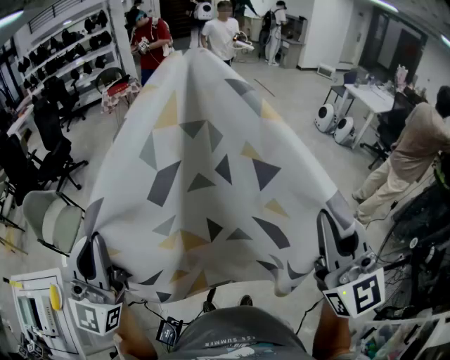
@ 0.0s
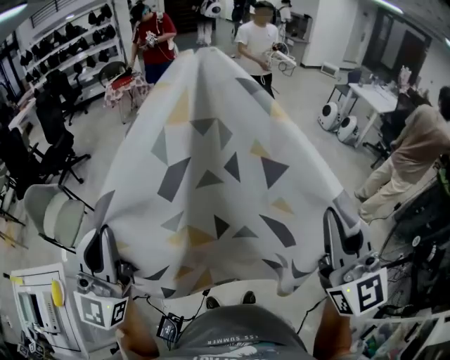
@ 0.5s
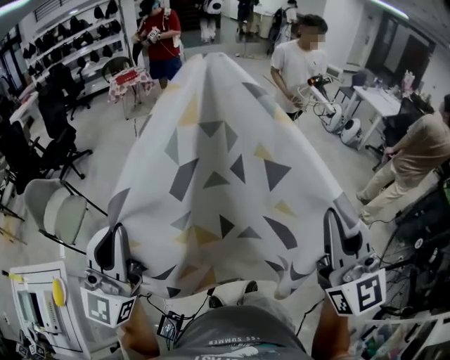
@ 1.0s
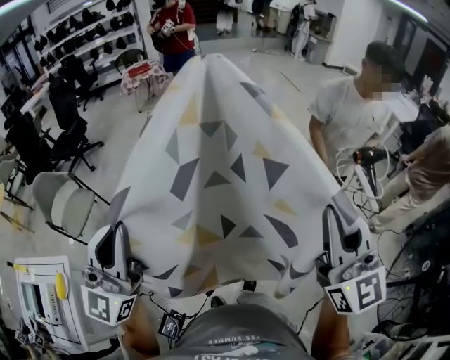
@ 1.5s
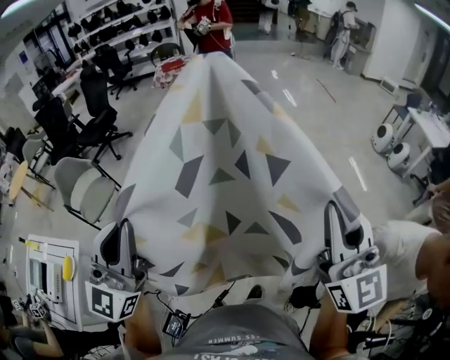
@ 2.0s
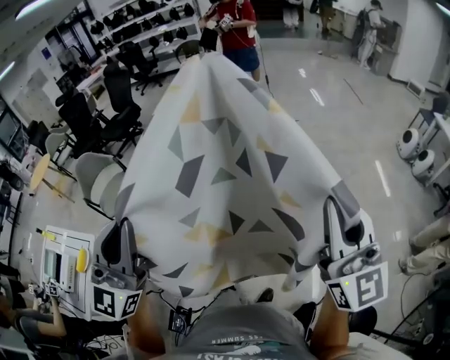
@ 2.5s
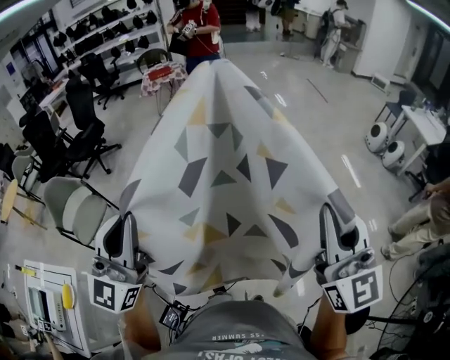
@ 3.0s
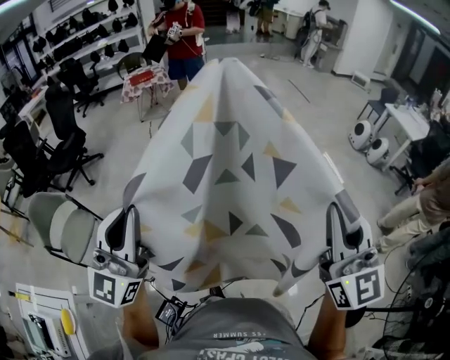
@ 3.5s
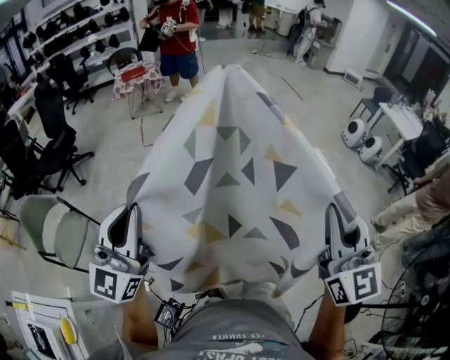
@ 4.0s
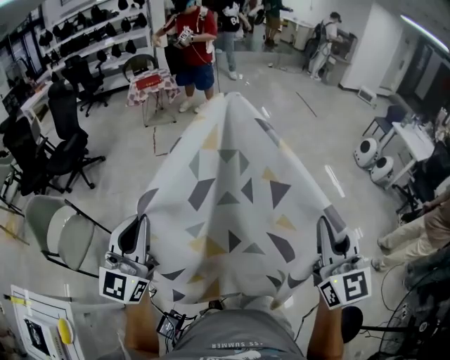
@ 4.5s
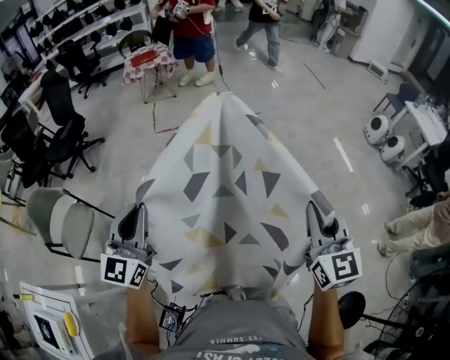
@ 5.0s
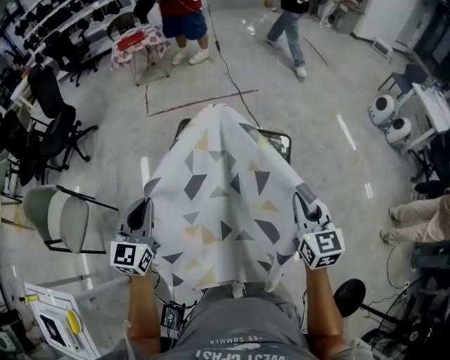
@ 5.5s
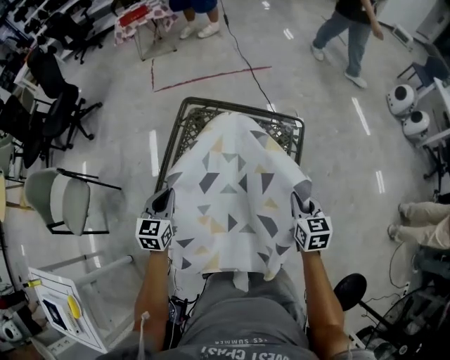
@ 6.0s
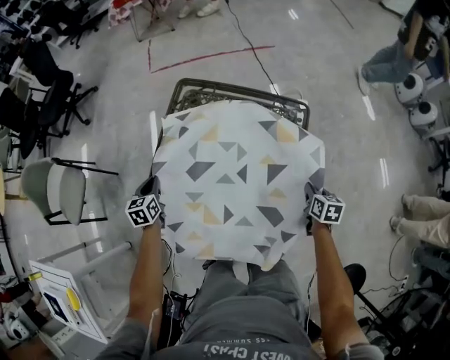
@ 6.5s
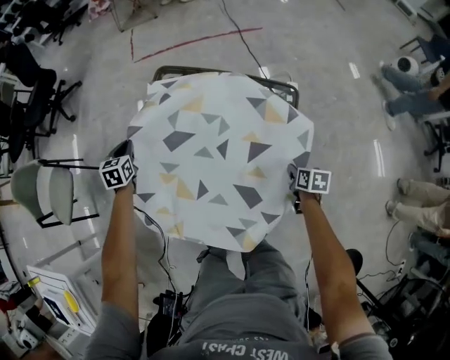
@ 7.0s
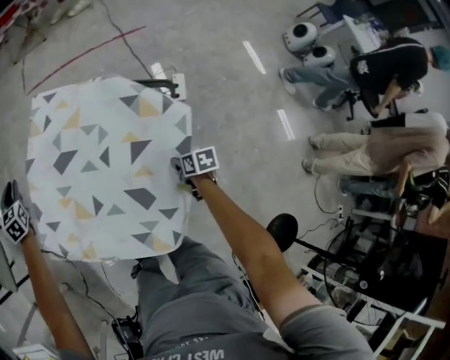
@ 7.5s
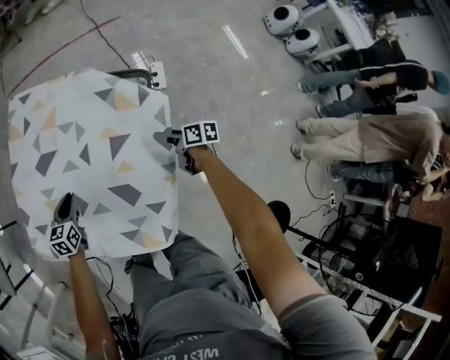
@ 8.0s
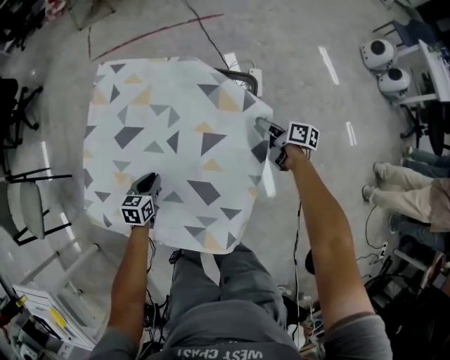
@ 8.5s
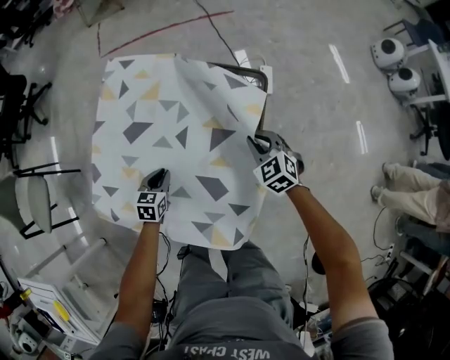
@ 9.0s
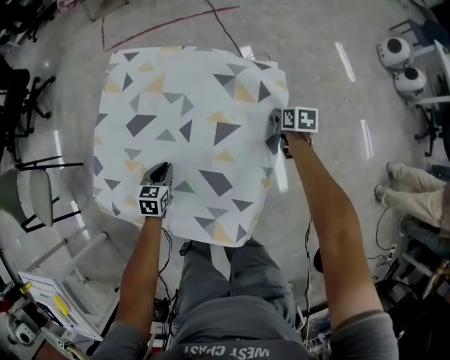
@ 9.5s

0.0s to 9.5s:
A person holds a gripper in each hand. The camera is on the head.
0.0s to 2.0s: The right gripper travels forward by about 20 cm. Meanwhile the left gripper travels forward by some 10 cm.
2.0s to 4.0s: The left gripper goes about 30 cm forward and to the left. The right gripper shifts approximately 20 cm forward and to the left.
4.0s to 5.5s: The two grippers go some 30 cm downward and forward. The right gripper turns by approximately 30 degrees; the left gripper tilts its fingers approximately 30 degrees downward.
5.5s to 7.5s: The grippers both shift downward by some 35 cm. The right gripper tilts its fingers about 40 degrees downward. The left gripper turns by roughly 30 degrees.
7.5s to 9.5s: The left gripper shifts roughly 35 cm to the right, backward and downward, and swivels about 30 degrees; the right gripper goes forward and backward, some 15 cm each way, reversing 2 times, and opens, then closes again.

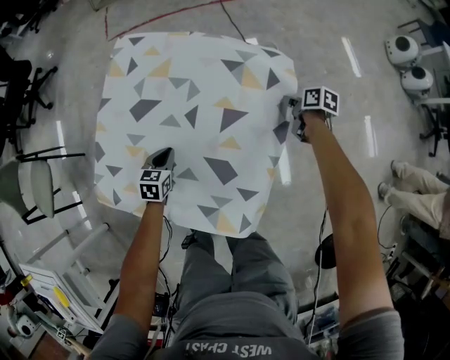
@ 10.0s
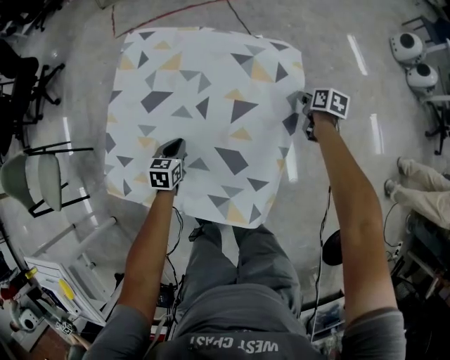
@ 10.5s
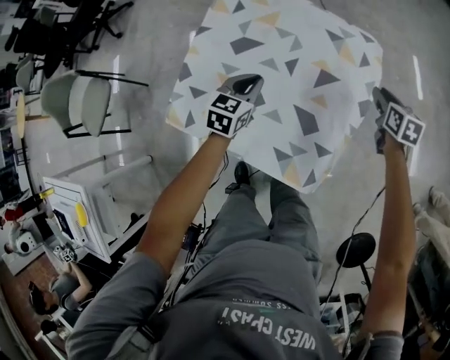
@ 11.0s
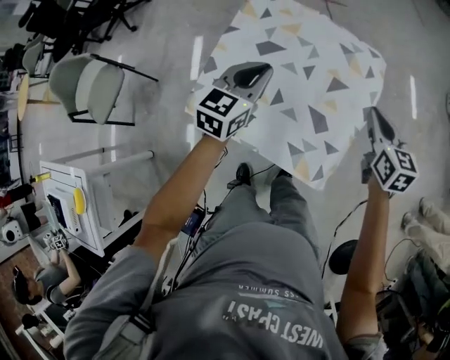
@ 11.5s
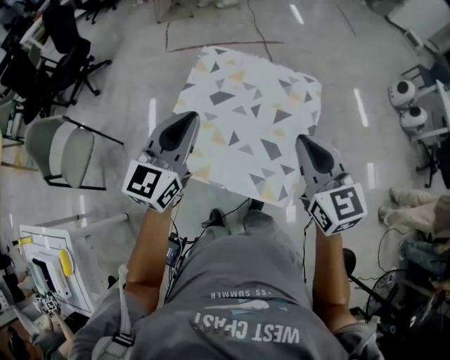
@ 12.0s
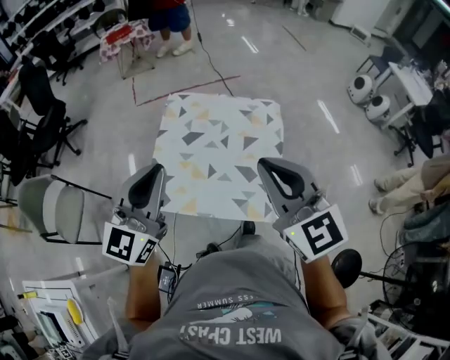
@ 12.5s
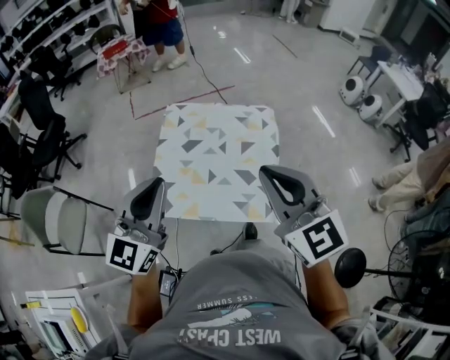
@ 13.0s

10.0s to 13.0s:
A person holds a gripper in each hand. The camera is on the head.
10.0s to 11.5s: The left gripper goes roughly 35 cm upward, and tilts its fingers roughly 30 degrees upward; the right gripper moves upward, backward and to the left, some 40 cm, and rolls counterclockwise, seen from behind, by roughly 40 degrees.
11.5s to 13.0s: The right gripper travels upward, backward and to the left by about 40 cm, and changes its angle by approximately 30 degrees, while the left gripper is displaced upward and backward by about 35 cm, and swivels some 30 degrees.

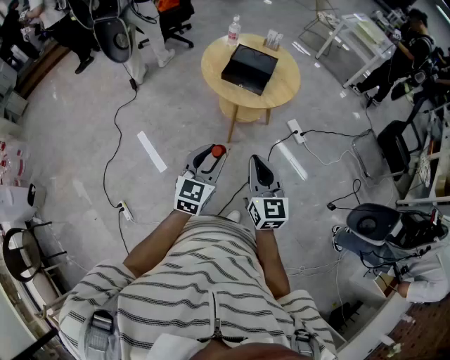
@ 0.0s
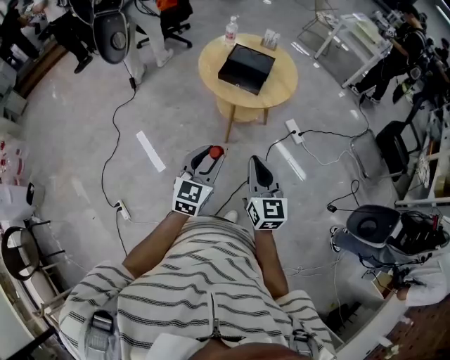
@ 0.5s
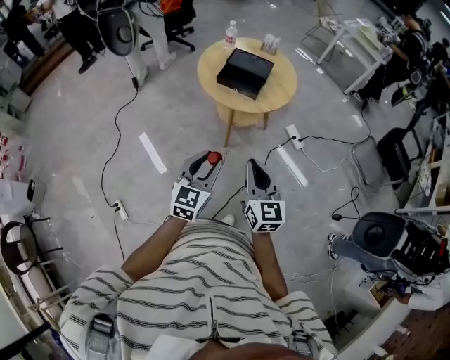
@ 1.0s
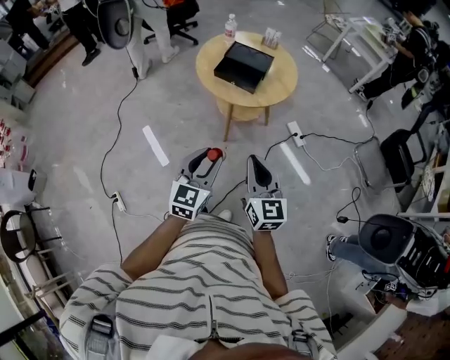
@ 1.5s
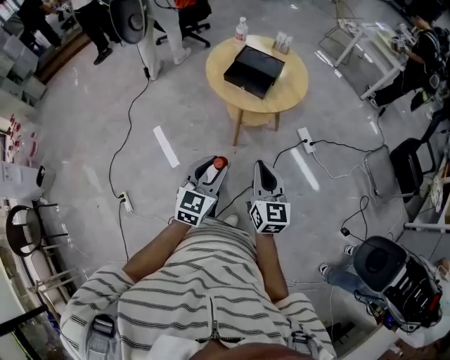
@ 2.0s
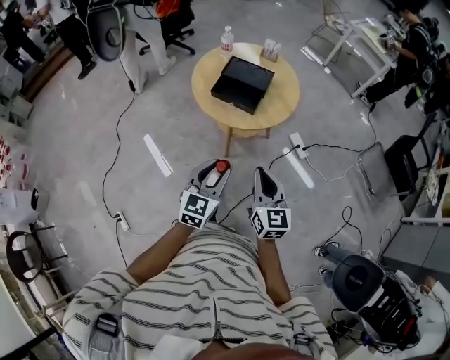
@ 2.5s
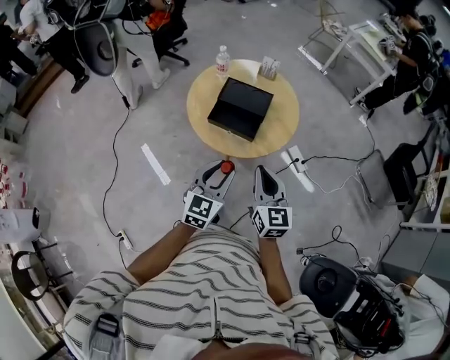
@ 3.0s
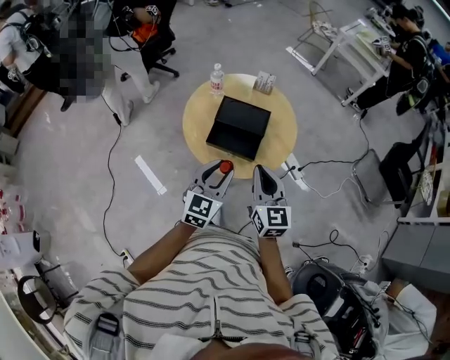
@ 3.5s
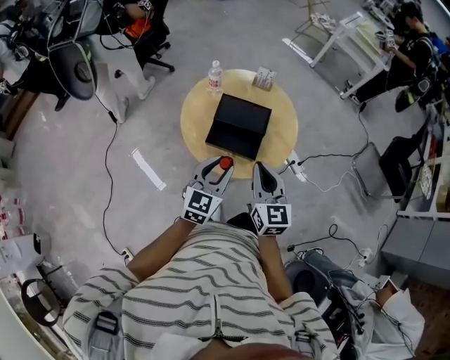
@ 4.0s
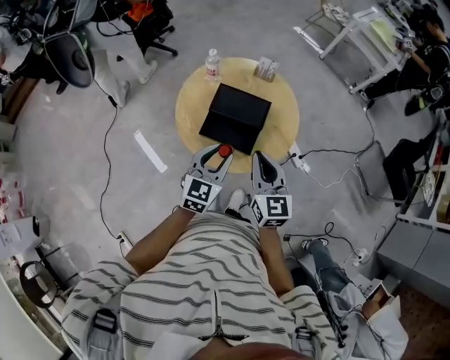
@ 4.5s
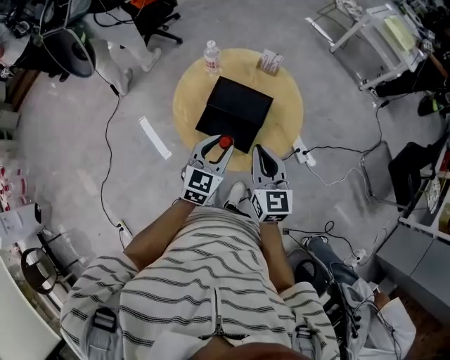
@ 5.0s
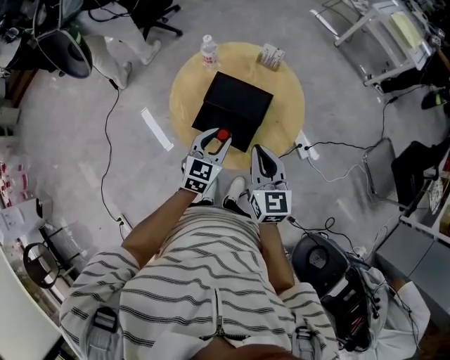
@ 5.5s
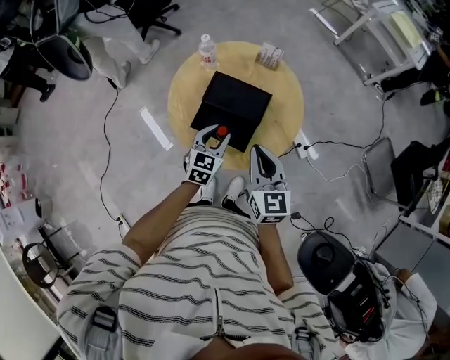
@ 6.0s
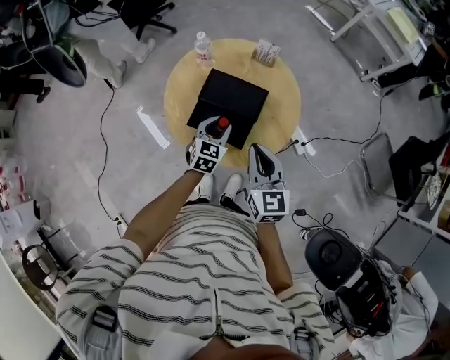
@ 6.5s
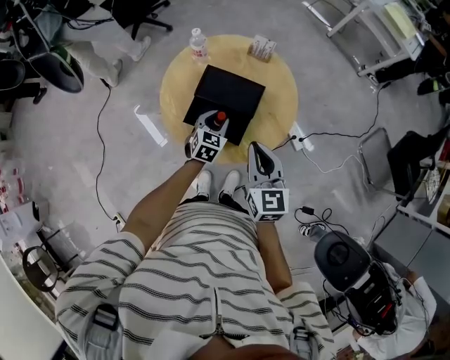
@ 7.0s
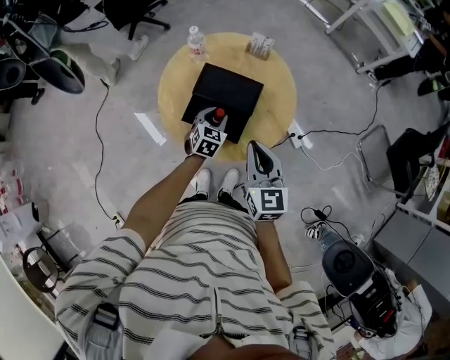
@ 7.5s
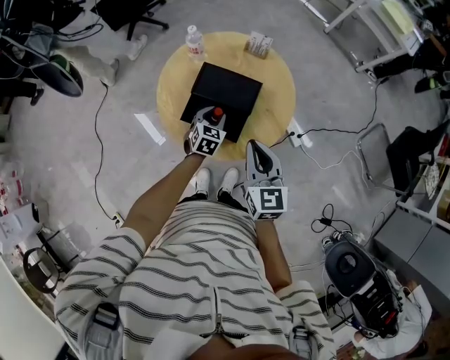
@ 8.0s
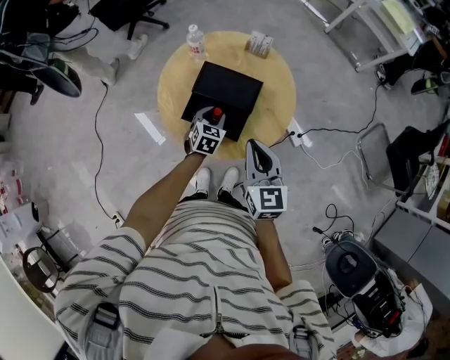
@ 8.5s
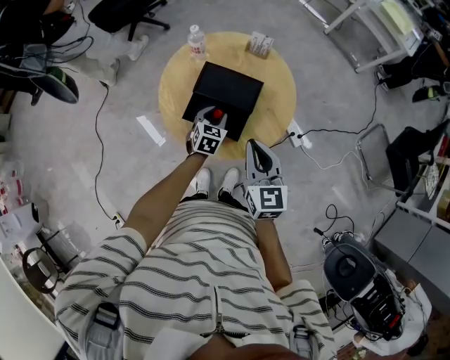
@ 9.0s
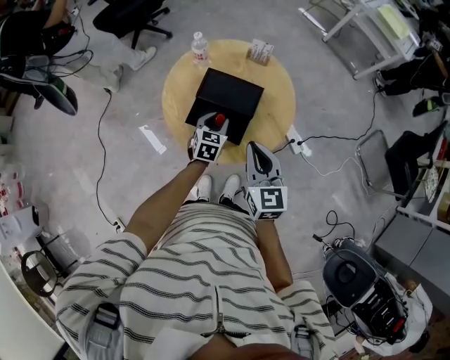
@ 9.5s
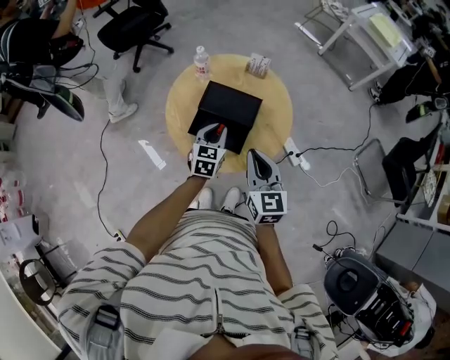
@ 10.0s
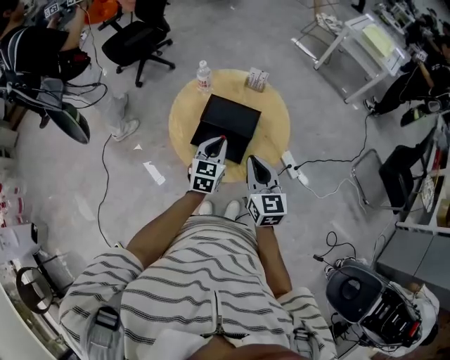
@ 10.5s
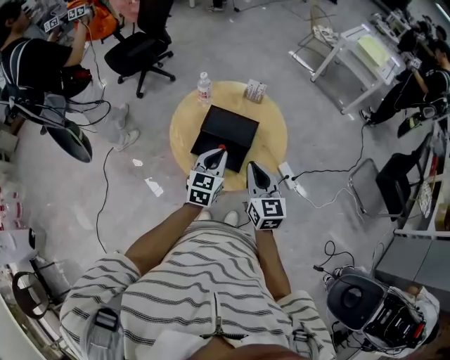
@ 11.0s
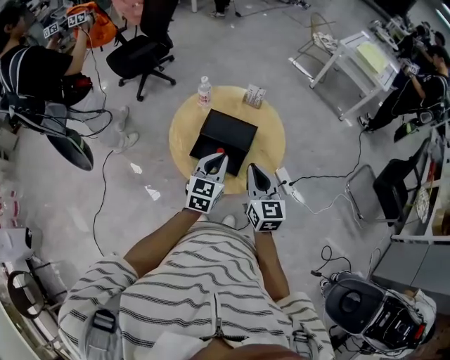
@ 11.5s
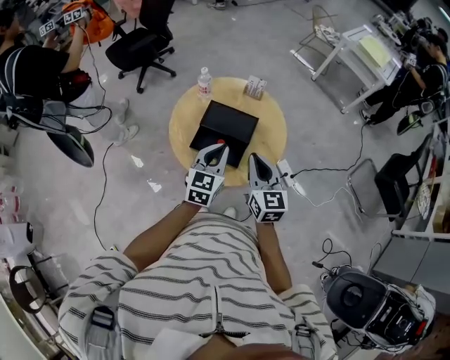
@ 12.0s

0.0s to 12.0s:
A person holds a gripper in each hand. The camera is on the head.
0.0s to 2.0s: Both grippers travel together to the right, about 5 cm.
2.0s to 4.0s: Both grippers travel together forward, about 35 cm.
4.0s to 6.0s: The left gripper shifts approximately 20 cm downward and forward, while the right gripper travels forward and to the right by approximately 10 cm.
6.0s to 8.0s: The left gripper goes some 10 cm downward.
8.0s to 10.0s: The left gripper moves upward, roughly 10 cm.
10.0s to 12.0s: The left gripper goes about 15 cm upward and backward.

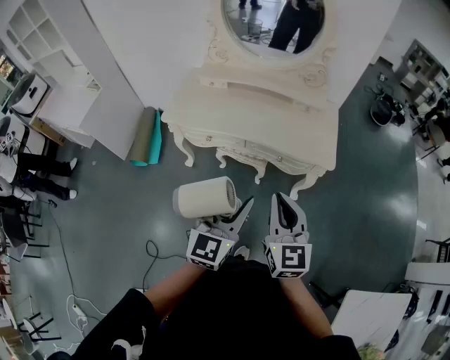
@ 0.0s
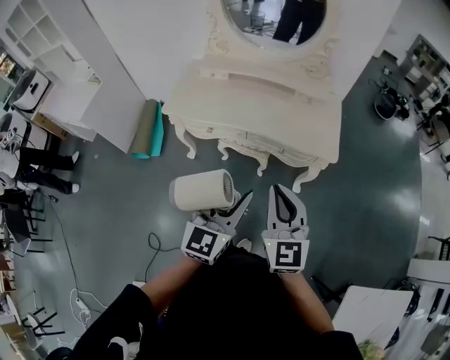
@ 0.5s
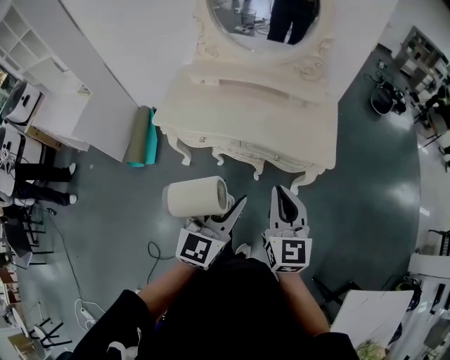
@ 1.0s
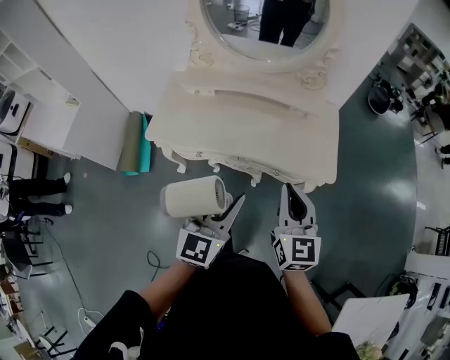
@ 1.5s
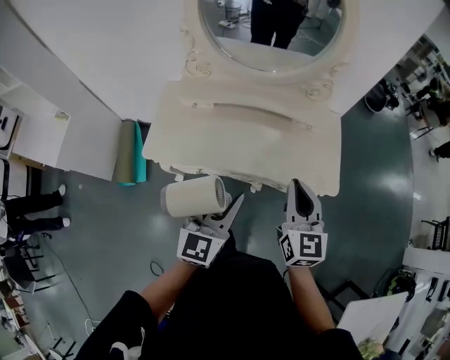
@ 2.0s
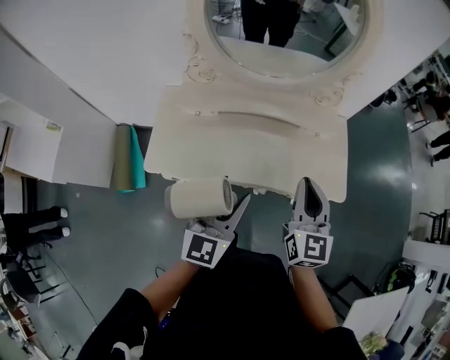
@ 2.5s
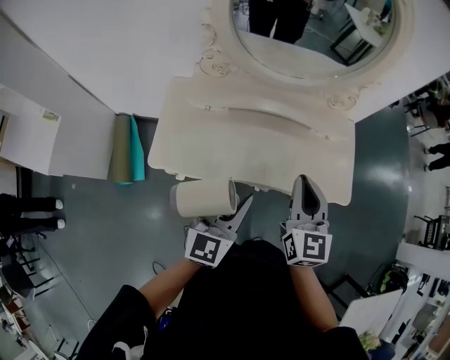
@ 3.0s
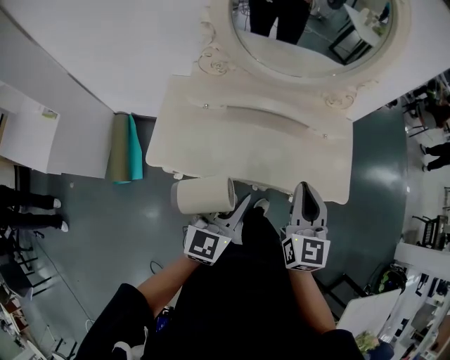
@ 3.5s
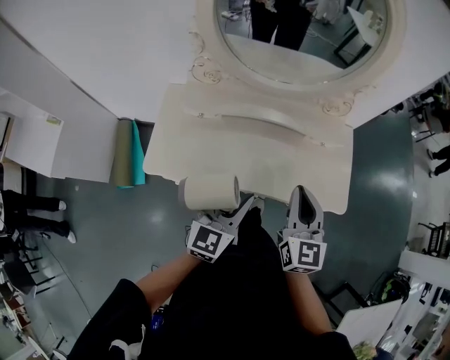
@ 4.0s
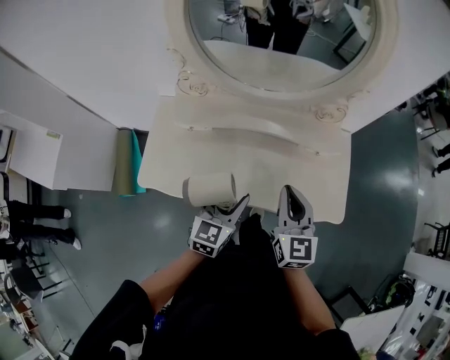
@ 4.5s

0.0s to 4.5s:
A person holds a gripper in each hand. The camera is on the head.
0.0s to 2.0s: The grippers both shift forward by approximately 25 cm.
2.0s to 4.5s: Both grippers travel together forward and downward, some 15 cm.
